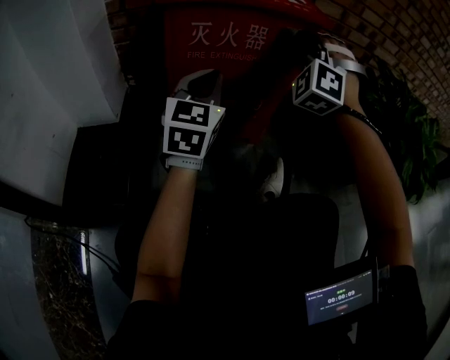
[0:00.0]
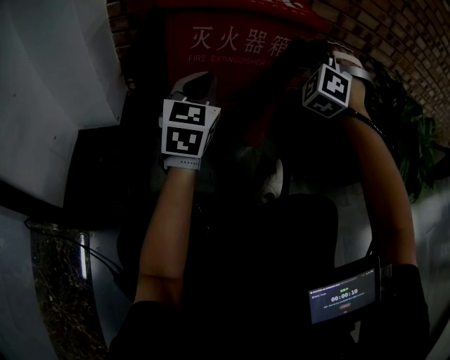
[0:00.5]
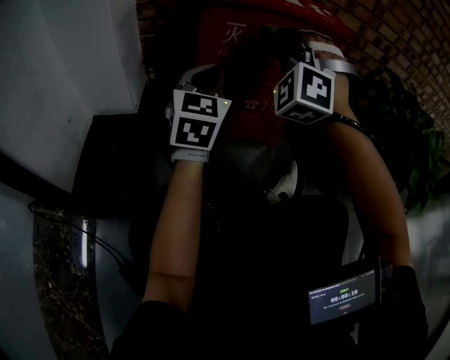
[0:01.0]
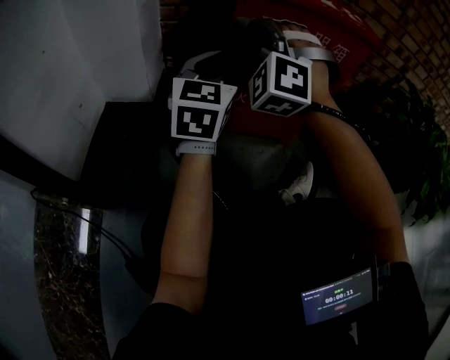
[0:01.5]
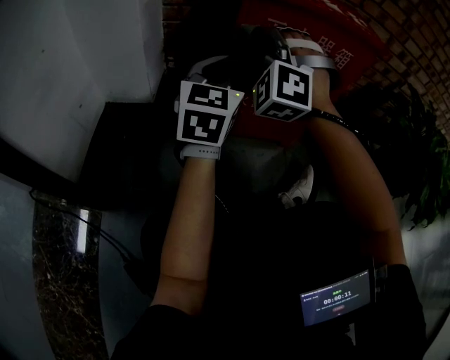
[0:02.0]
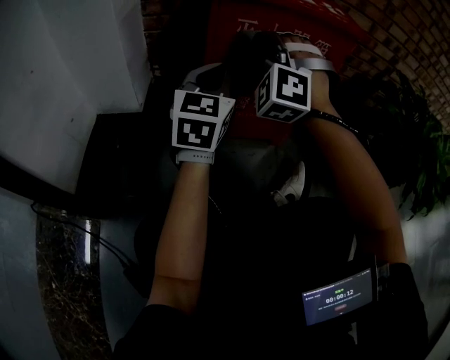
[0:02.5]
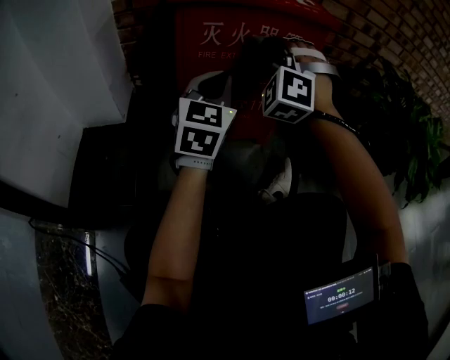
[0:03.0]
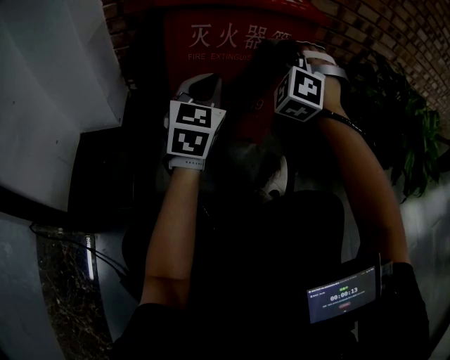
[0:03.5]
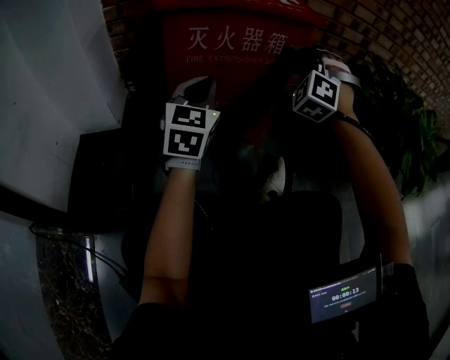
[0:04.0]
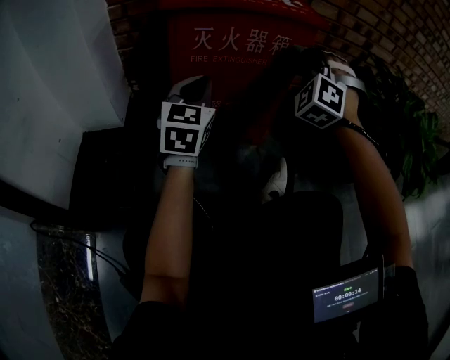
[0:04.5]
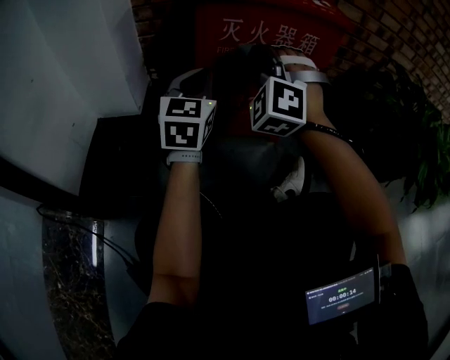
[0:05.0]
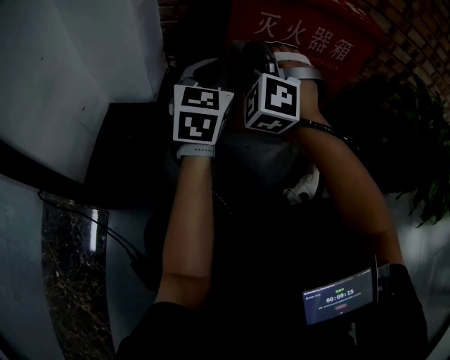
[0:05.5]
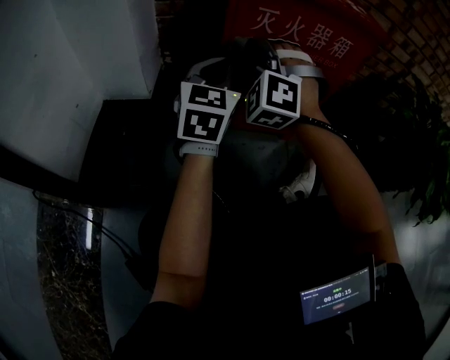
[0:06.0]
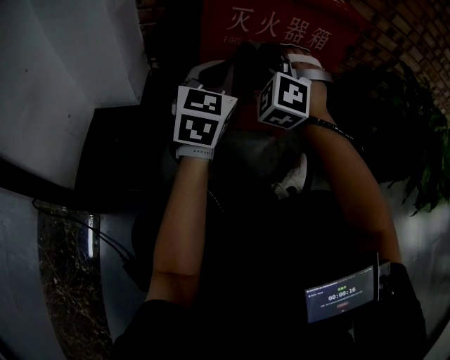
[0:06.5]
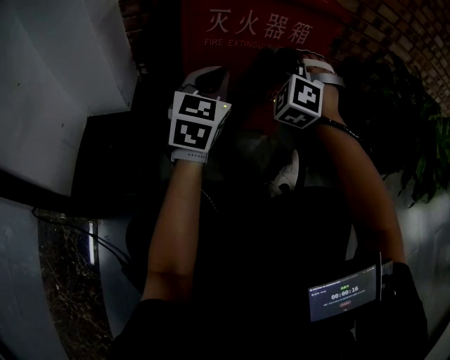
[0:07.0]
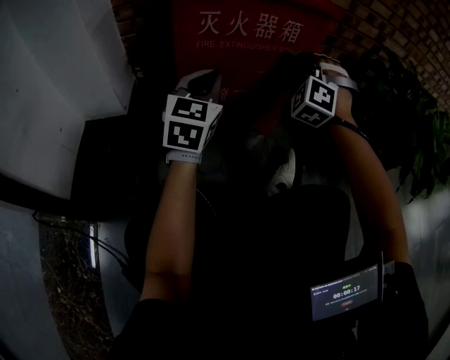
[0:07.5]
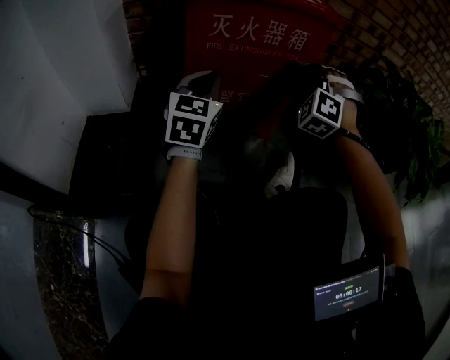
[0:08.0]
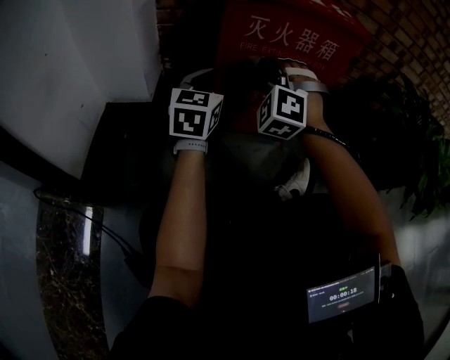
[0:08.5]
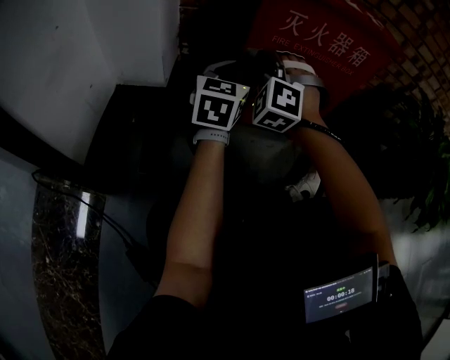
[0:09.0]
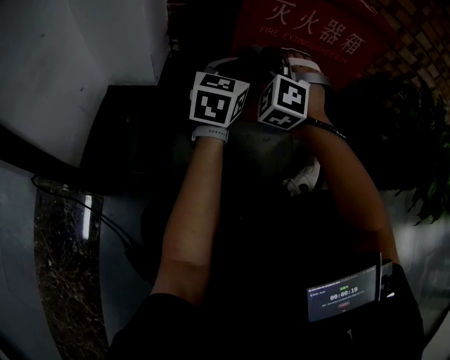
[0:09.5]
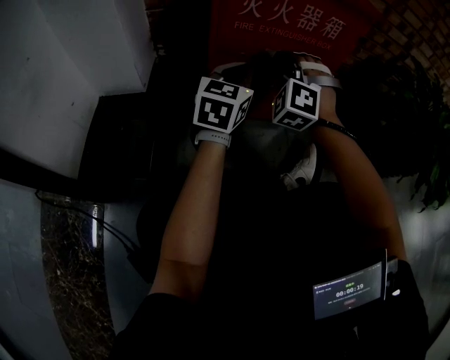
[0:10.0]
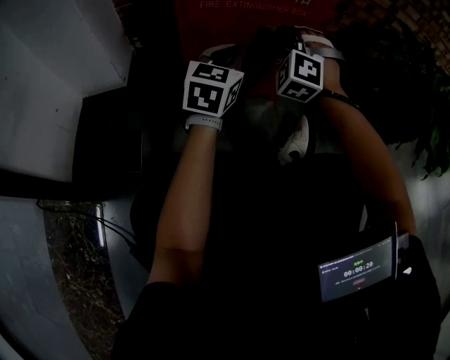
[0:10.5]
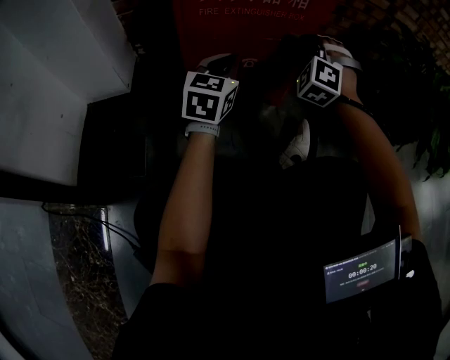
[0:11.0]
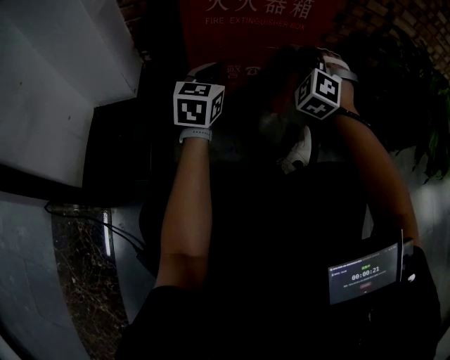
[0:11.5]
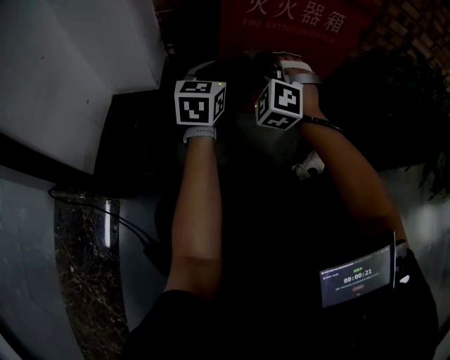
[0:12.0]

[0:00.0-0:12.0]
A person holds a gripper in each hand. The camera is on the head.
0:00.0 to 0:02.0: The left gripper shifts by roughly 10 cm.
0:02.0 to 0:04.0: The left gripper moves some 10 cm.
0:04.0 to 0:06.0: The left gripper changes place by some 10 cm.
0:06.0 to 0:08.0: The left gripper shifts by roughly 5 cm.
0:10.0 to 0:12.0: The left gripper shifts by some 10 cm.

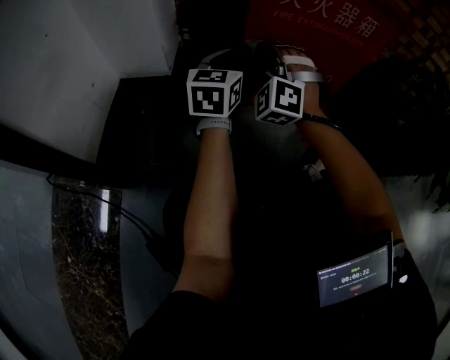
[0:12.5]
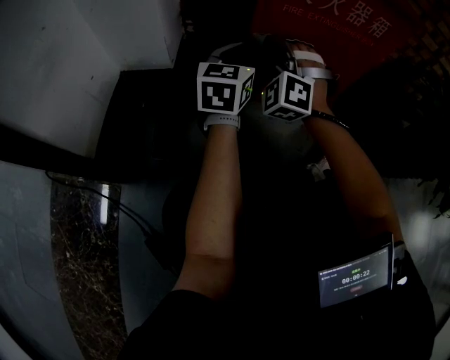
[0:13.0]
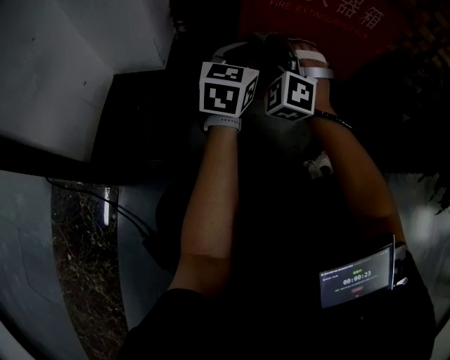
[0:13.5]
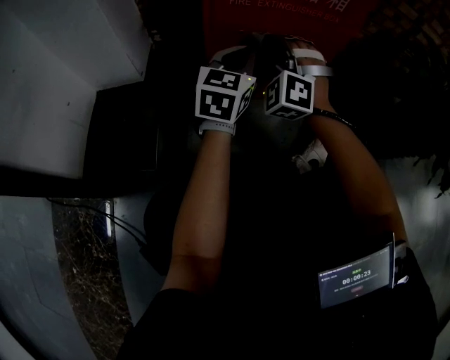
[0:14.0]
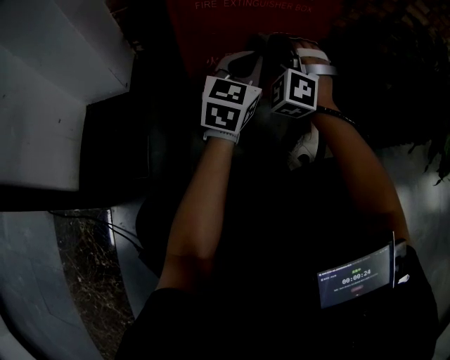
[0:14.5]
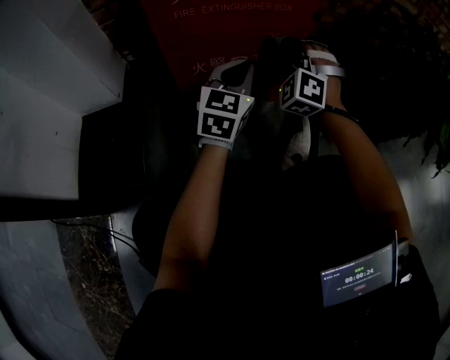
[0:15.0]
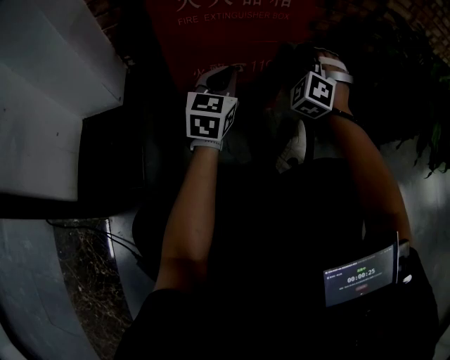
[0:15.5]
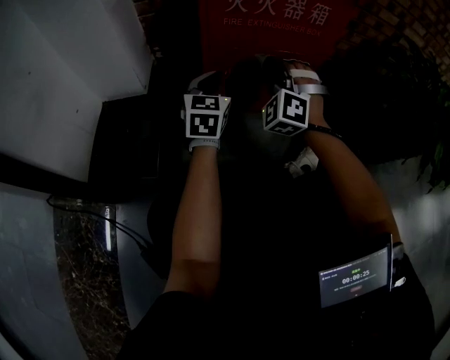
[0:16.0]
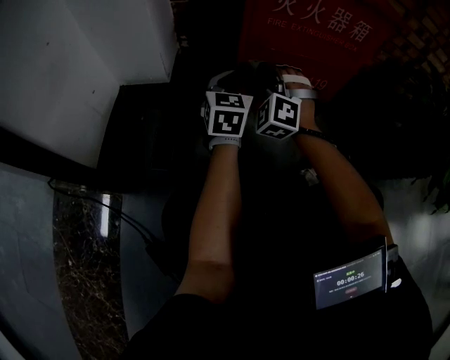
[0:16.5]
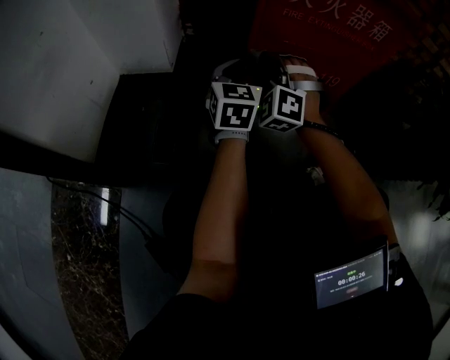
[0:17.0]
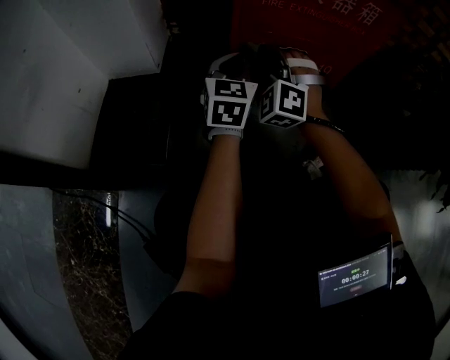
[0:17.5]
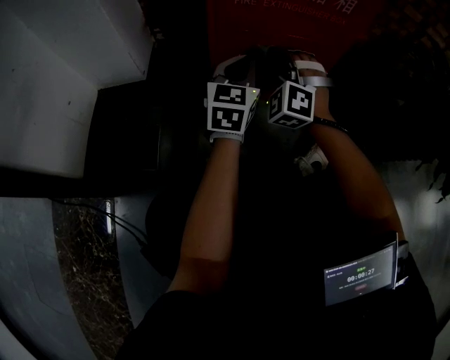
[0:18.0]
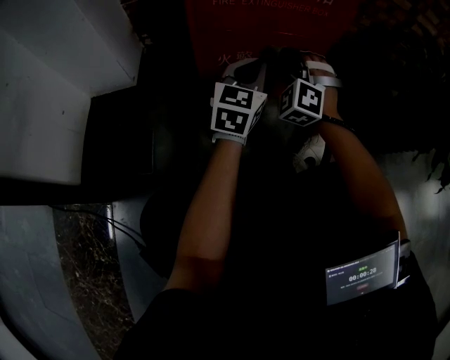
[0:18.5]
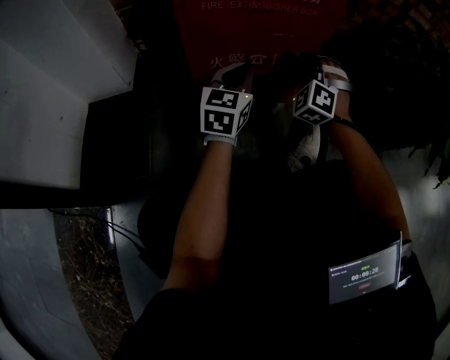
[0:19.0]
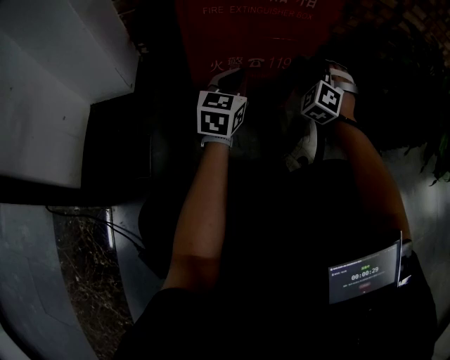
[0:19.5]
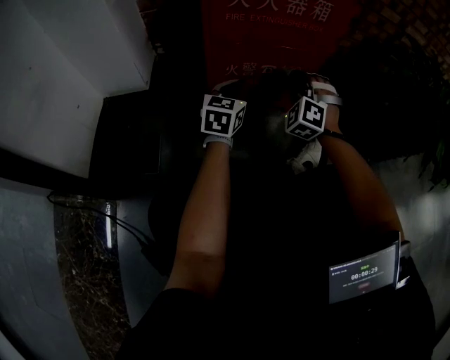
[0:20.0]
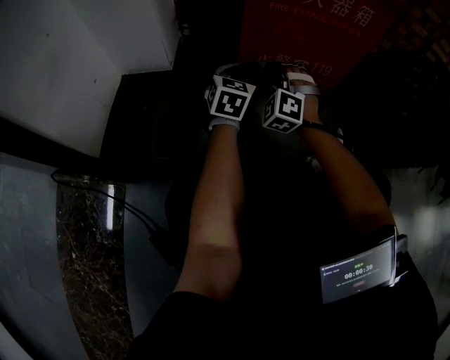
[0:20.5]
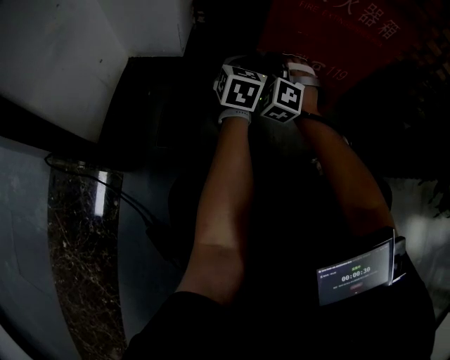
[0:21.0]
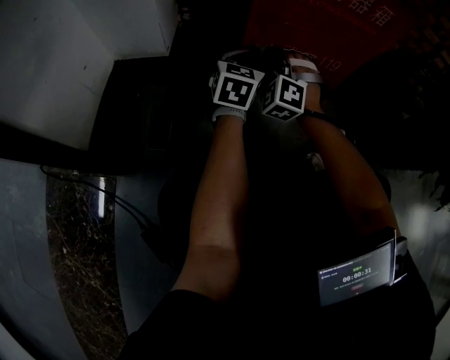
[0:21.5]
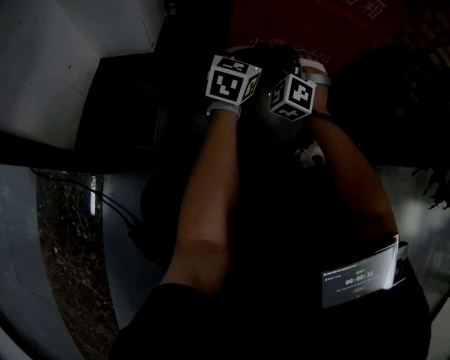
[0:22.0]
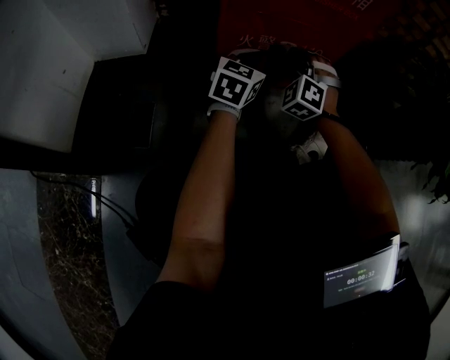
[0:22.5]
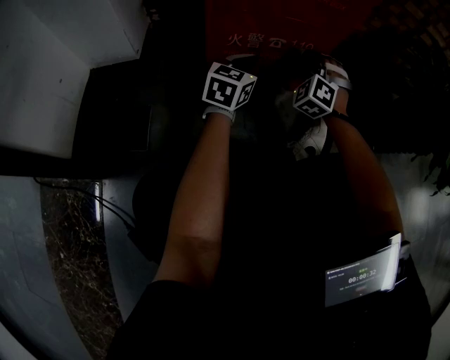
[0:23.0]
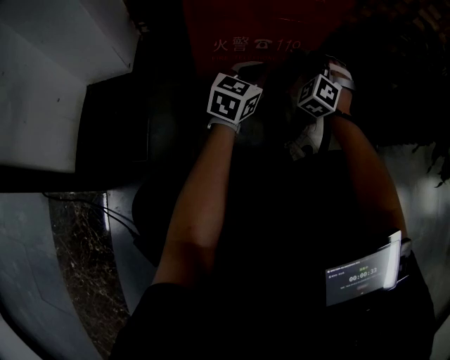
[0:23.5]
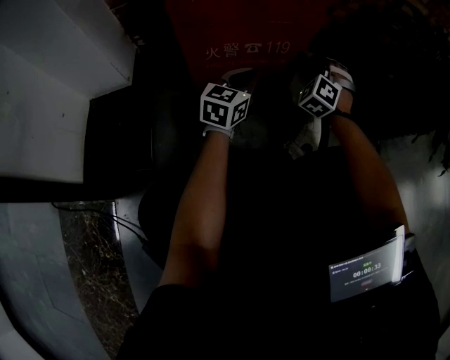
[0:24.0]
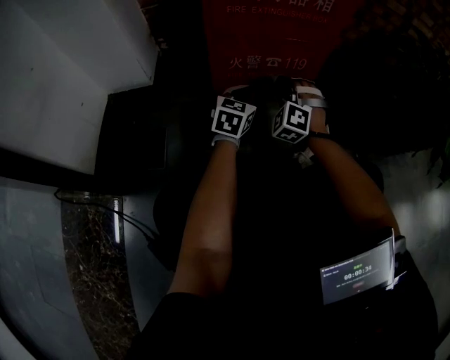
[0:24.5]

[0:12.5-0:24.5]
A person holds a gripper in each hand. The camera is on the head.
0:12.5 to 0:14.5: The left gripper moves some 20 cm, and rotates some 20 degrees.
0:14.5 to 0:16.5: The left gripper shifts by roughly 20 cm, and rotates about 30 degrees.
0:16.5 to 0:18.5: The left gripper moves approximately 15 cm, and rotates roughly 20 degrees.
0:18.5 to 0:20.5: The left gripper changes place by some 15 cm, and turns by about 20 degrees.
0:20.5 to 0:22.5: The left gripper shifts by approximately 10 cm.

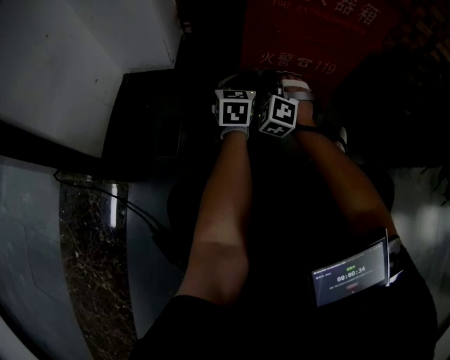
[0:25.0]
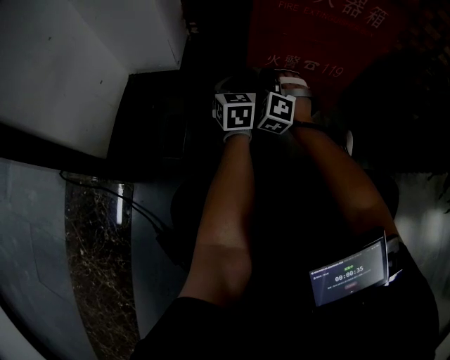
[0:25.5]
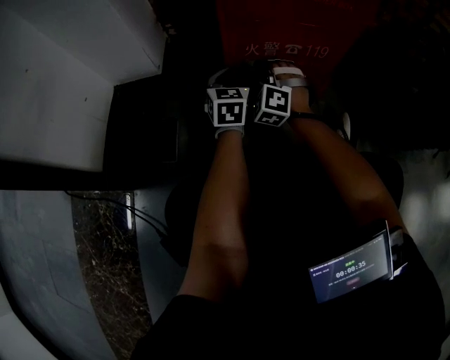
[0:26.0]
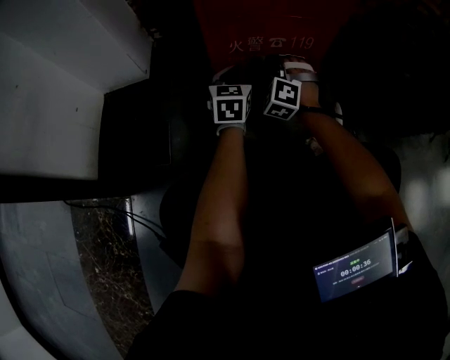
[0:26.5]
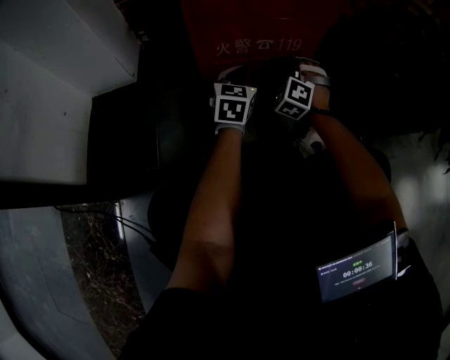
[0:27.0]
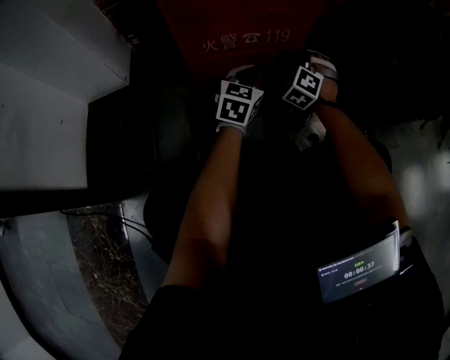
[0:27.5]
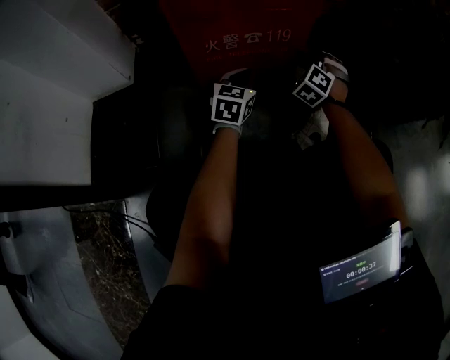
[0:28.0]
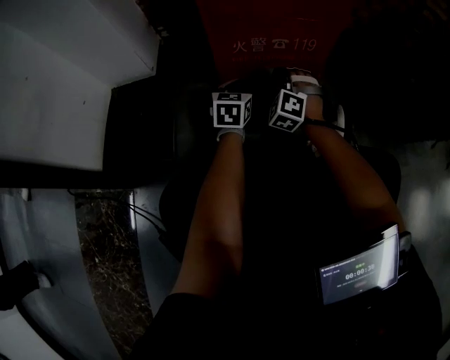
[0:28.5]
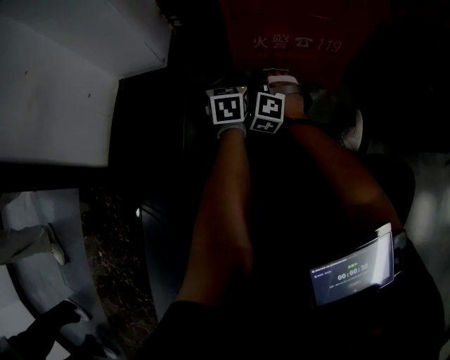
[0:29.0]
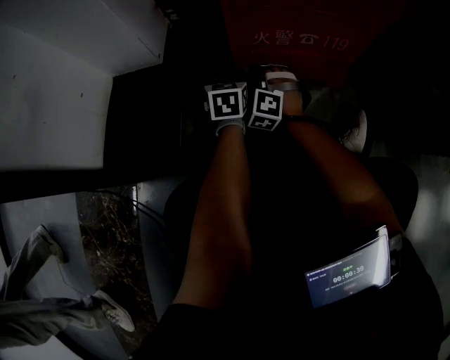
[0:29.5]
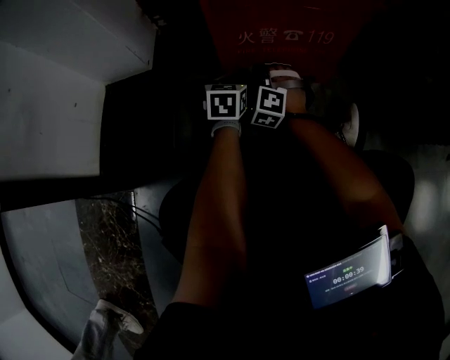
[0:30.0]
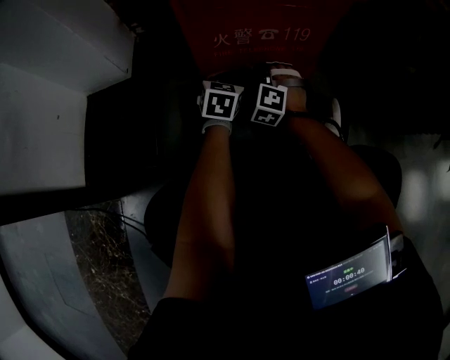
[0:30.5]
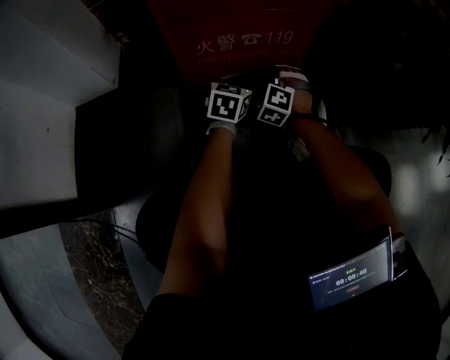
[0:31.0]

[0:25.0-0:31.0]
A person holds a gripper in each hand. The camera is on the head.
0:25.0 to 0:27.0: The left gripper ends up some 15 cm from where it was.
0:27.0 to 0:29.0: The left gripper ends up about 15 cm from where it was, and swivels roughly 20 degrees.
0:29.0 to 0:31.0: The left gripper ends up about 20 cm from where it was, and rotates roughly 30 degrees.
